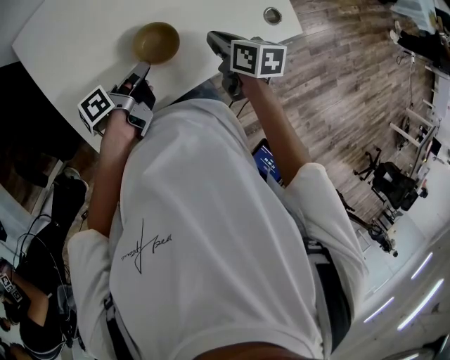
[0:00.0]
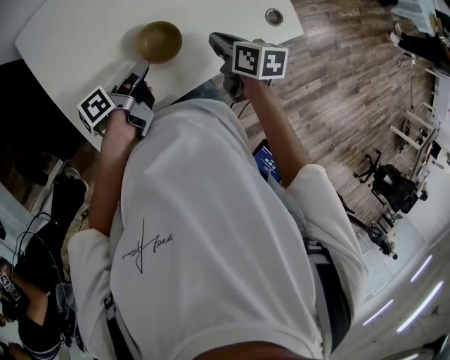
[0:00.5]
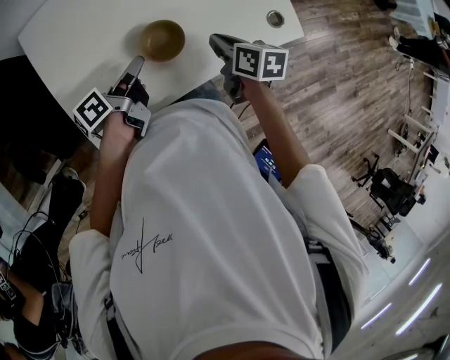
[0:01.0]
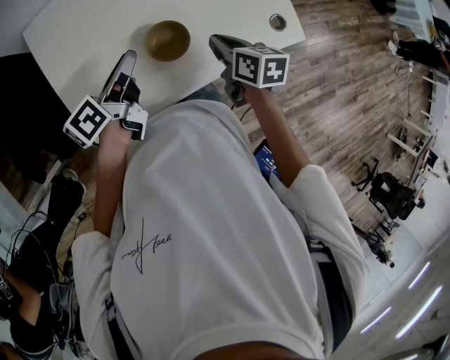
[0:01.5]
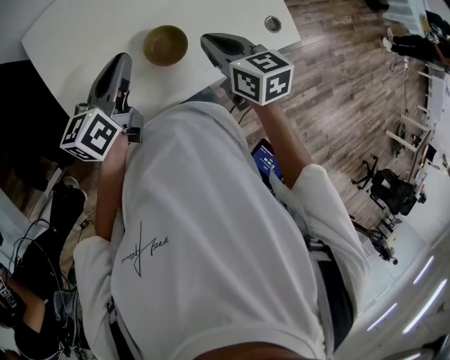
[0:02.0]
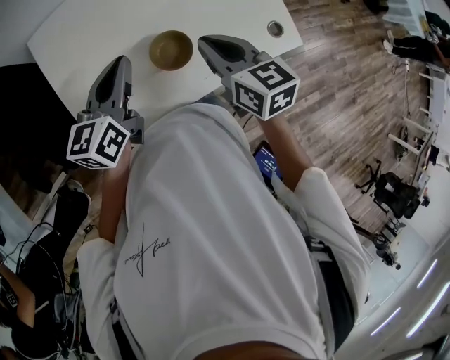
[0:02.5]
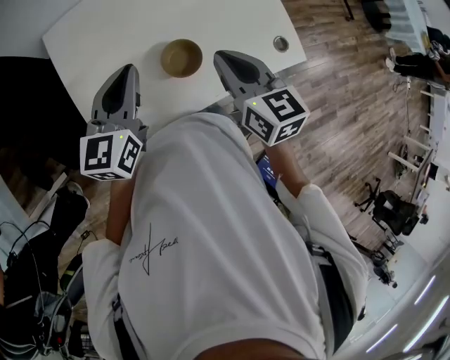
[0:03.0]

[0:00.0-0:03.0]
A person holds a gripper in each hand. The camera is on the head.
0:00.0 to 0:01.5: The left gripper shifts some 10 cm upward, and changes its angle by roughly 30 degrees.
0:01.5 to 0:03.0: Both grippers move upward, approximately 10 cm. The right gripper turns by roughly 30 degrees, while the left gripper rotates around the line of its fingers by some 50 degrees, clockwise from behind, and closes its fingers.

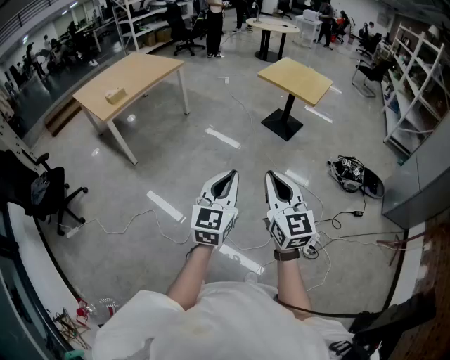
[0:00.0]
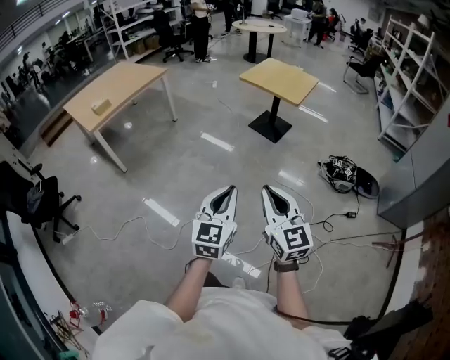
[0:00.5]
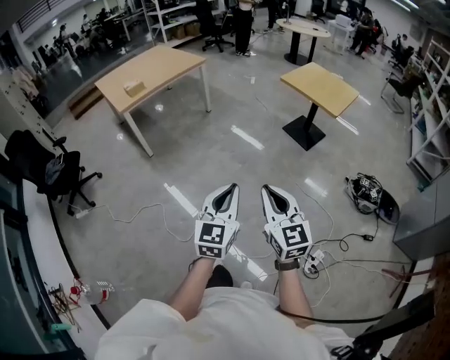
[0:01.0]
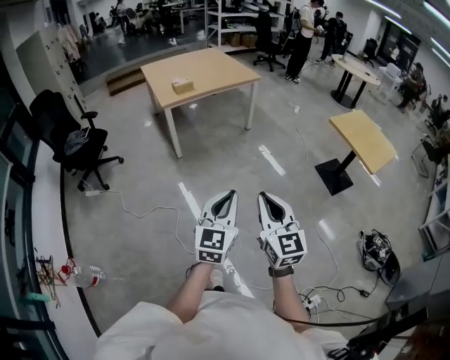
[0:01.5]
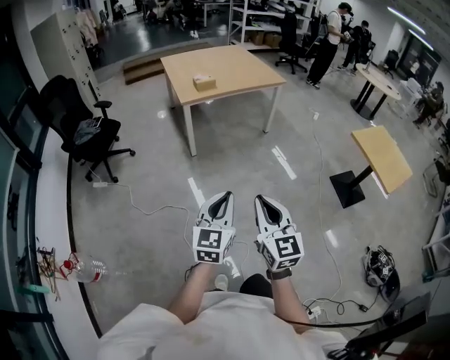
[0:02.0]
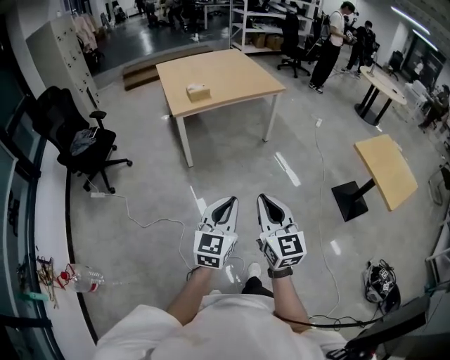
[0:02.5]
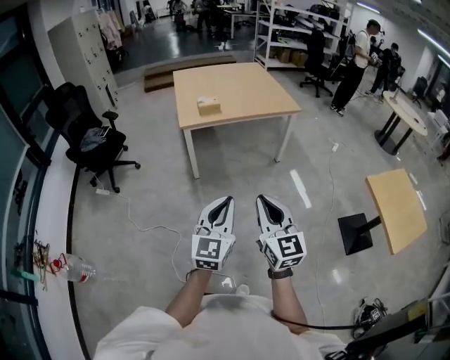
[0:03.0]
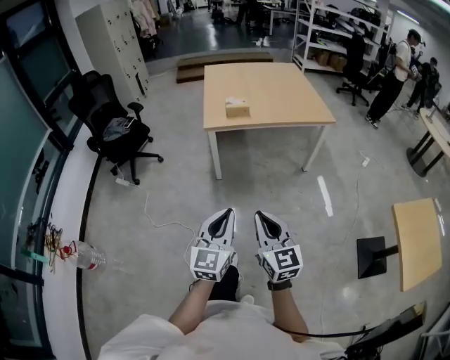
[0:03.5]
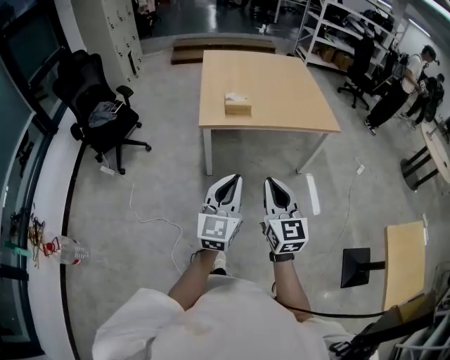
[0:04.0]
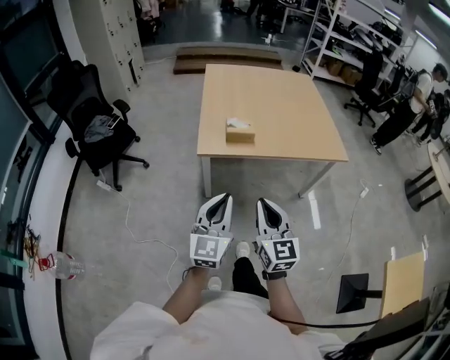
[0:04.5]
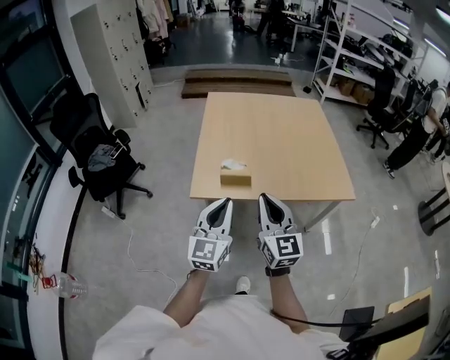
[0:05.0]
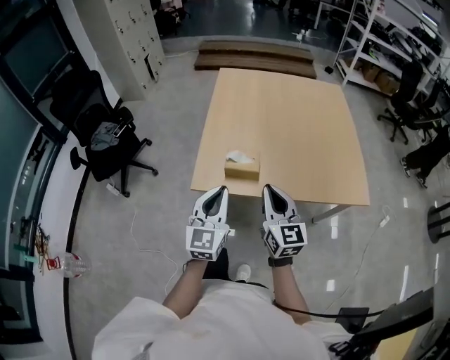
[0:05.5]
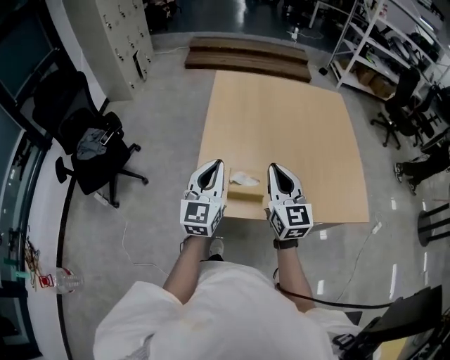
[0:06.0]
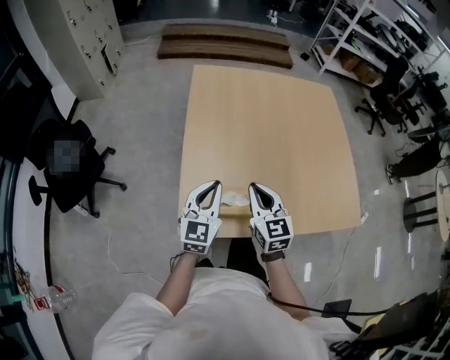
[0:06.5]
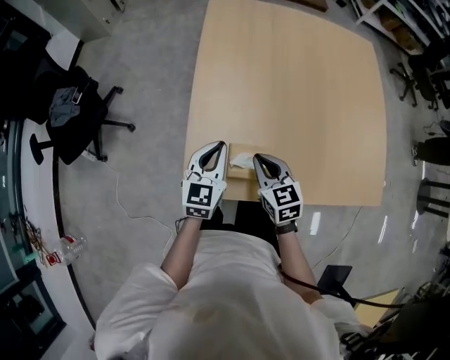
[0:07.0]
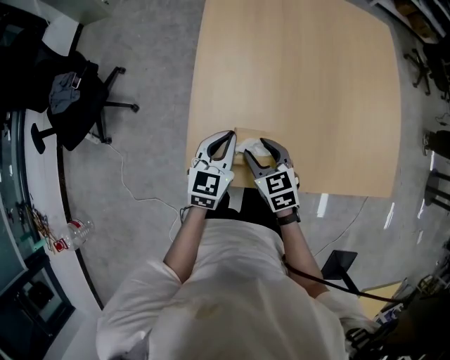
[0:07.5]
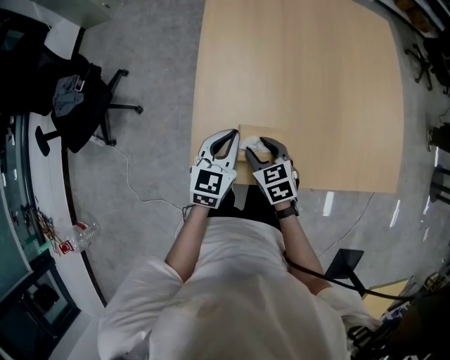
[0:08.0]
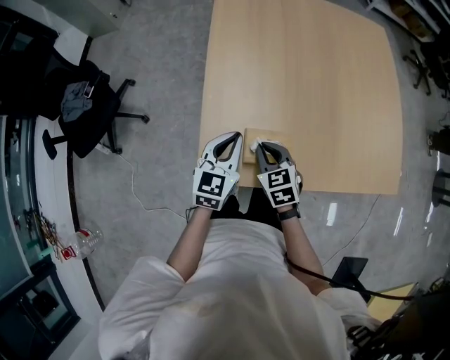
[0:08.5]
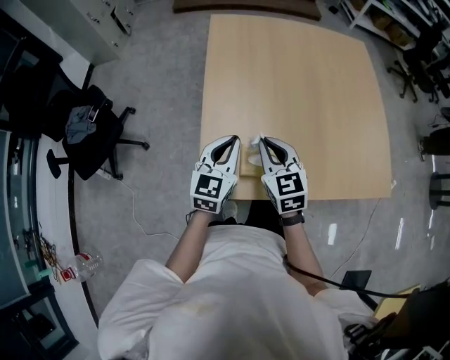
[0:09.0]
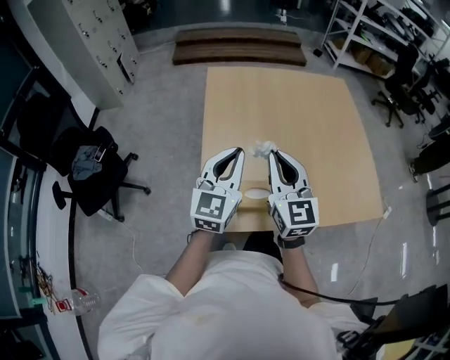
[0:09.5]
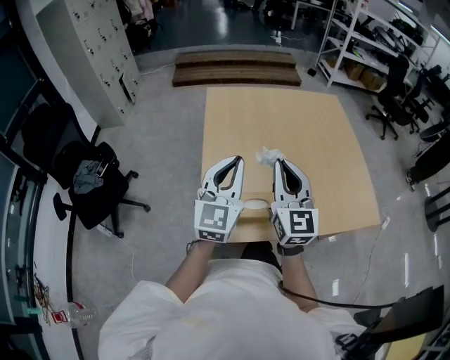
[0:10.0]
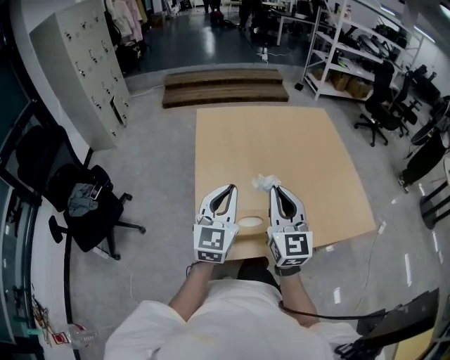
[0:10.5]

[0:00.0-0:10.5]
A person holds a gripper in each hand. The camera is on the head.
0:00.0 to 0:02.0: The left gripper shifts by about 30 cm, and turns by about 40 degrees. The right gripper moves some 30 cm, and changes its angle by about 30 degrees.
0:02.0 to 0:04.0: The pair of grippers is taken forward, some 50 cm.
0:04.0 to 0:06.5: Both grippers are carried forward, about 70 cm.
0:06.5 to 0:08.5: The left gripper heads downward, covering roughly 10 cm; the right gripper moves downward, about 15 cm, changes its angle by about 30 degrees, and opens and closes again.
0:08.5 to 0:10.5: Both grippers travel together upward, some 25 cm. The left gripper changes its angle by roughly 20 degrees, while the right gripper tips its fingers upward by roughly 50 degrees.

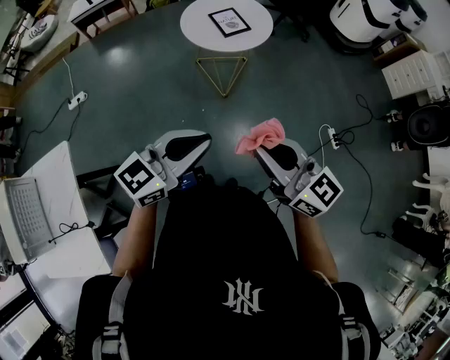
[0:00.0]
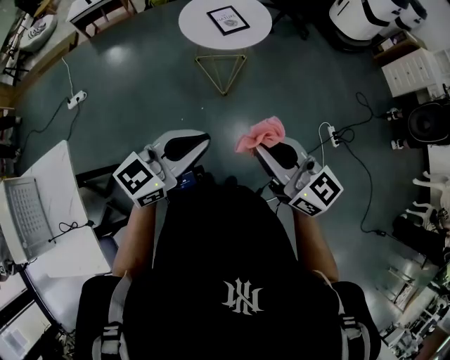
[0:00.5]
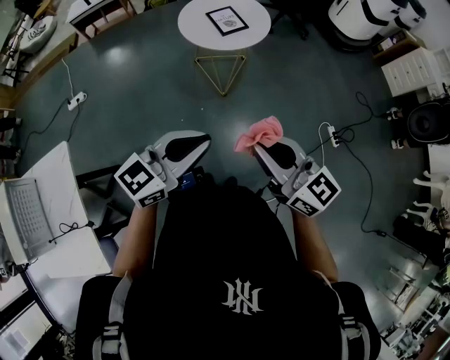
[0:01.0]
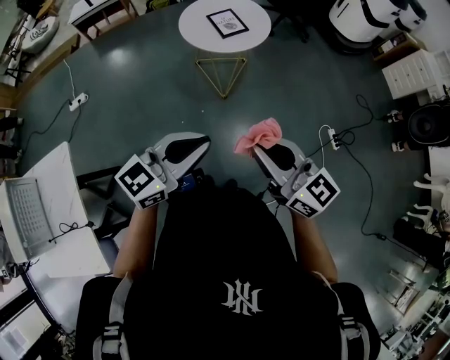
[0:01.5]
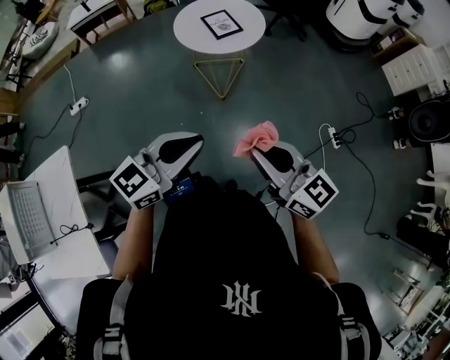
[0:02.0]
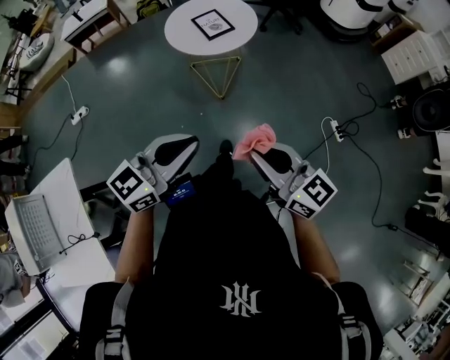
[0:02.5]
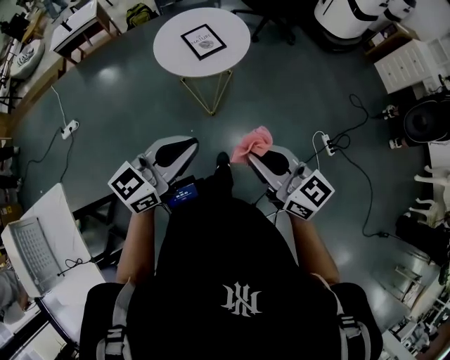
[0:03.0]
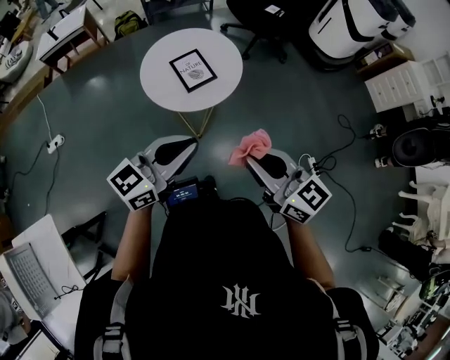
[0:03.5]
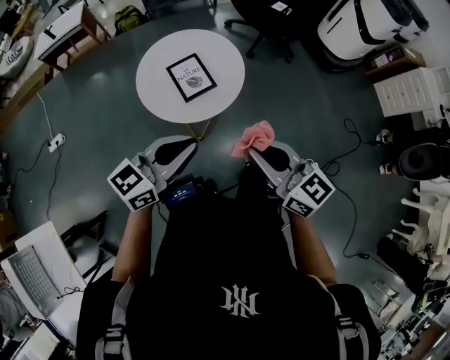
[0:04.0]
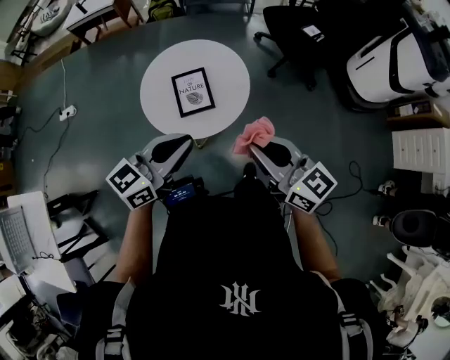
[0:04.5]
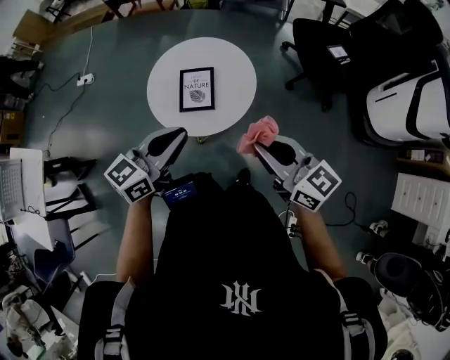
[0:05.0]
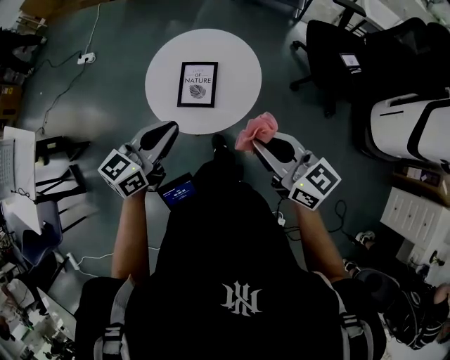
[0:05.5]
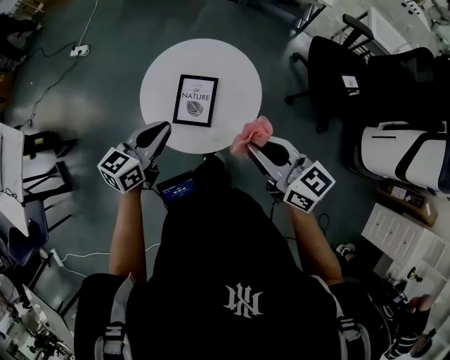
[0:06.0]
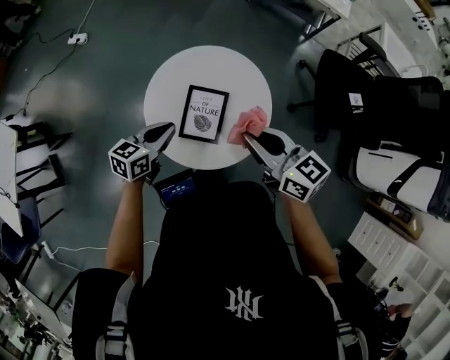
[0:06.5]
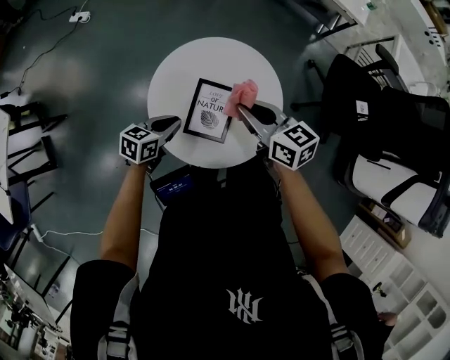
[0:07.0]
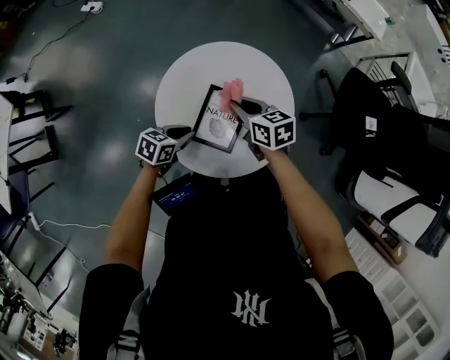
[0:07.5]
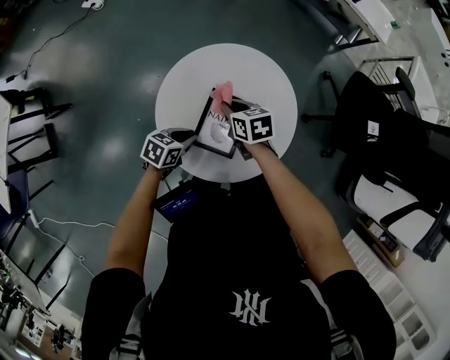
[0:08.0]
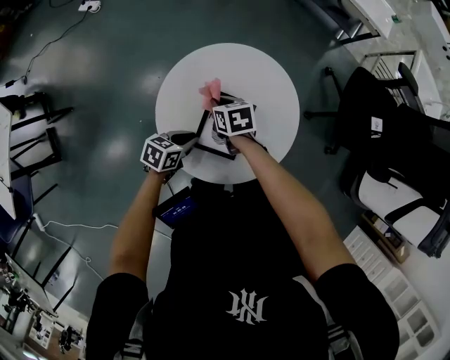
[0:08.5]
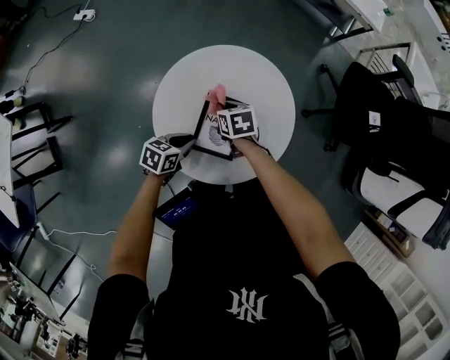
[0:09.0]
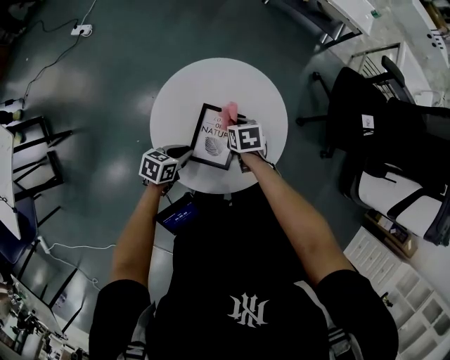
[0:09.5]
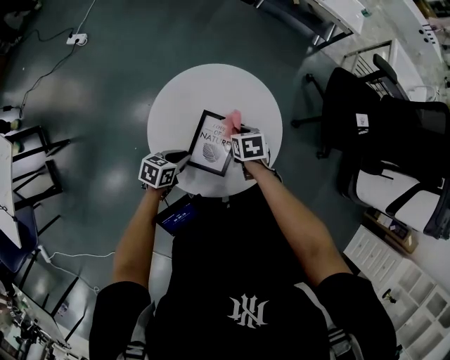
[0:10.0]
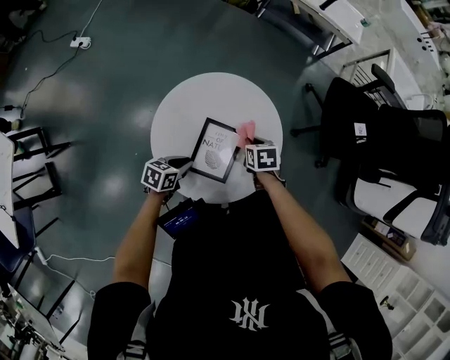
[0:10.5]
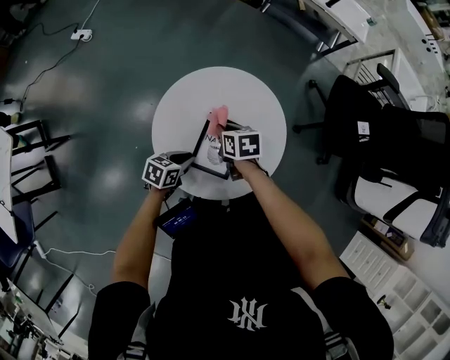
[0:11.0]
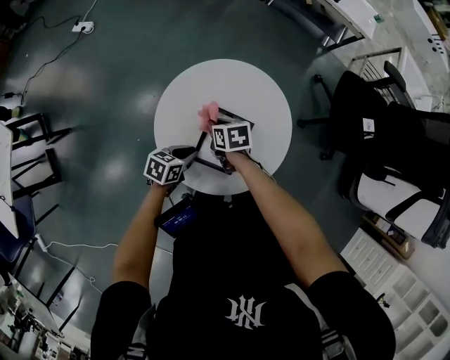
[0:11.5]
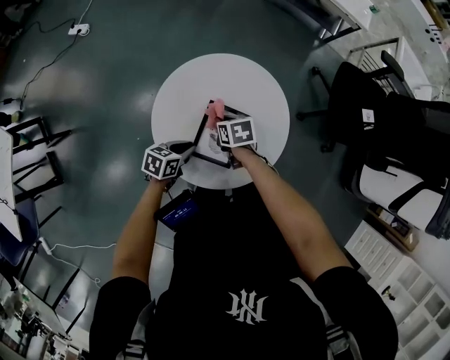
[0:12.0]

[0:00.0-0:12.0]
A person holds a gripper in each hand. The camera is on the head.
0:00.0 to 0:02.0: The grippers make only small movements.
0:02.0 to 0:04.0: Both grippers are carried forward, roughly 40 cm.
0:04.0 to 0:06.0: The left gripper ends up approximately 25 cm from where it was, and swivels about 50 degrees, while the right gripper moves about 35 cm, and rotates about 40 degrees.
0:06.0 to 0:08.0: The right gripper travels downward, forward and to the left by roughly 40 cm, and tilts its fingers roughly 40 degrees downward. Meanwhile the left gripper moves downward, some 25 cm, and rotates about 30 degrees.
0:08.0 to 0:10.0: The right gripper goes some 10 cm to the right, and swivels approximately 20 degrees.
0:10.0 to 0:12.0: The right gripper is displaced to the left by approximately 10 cm.

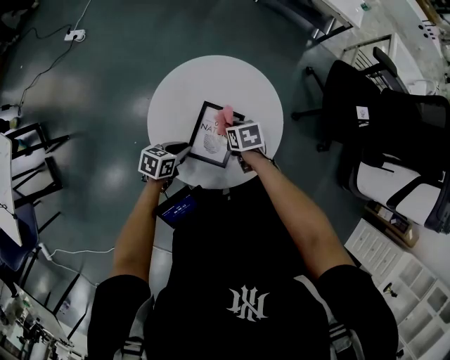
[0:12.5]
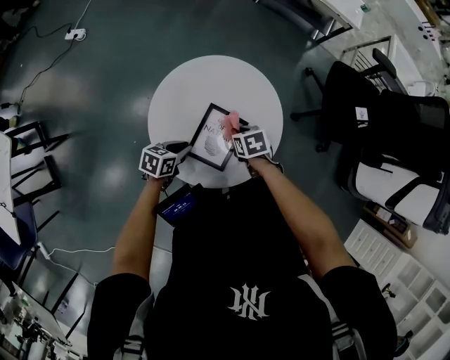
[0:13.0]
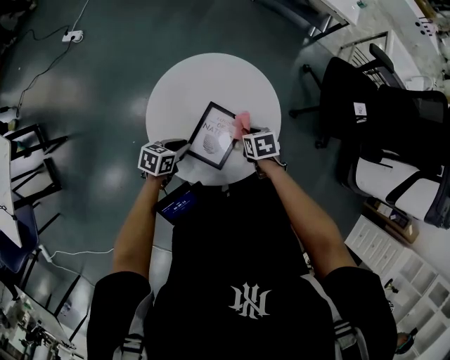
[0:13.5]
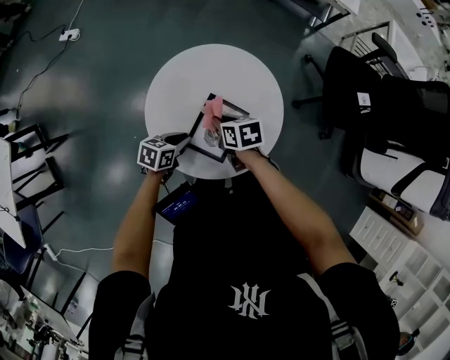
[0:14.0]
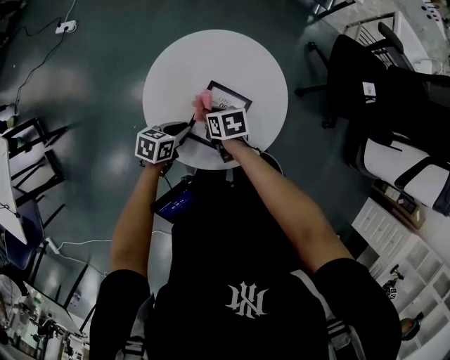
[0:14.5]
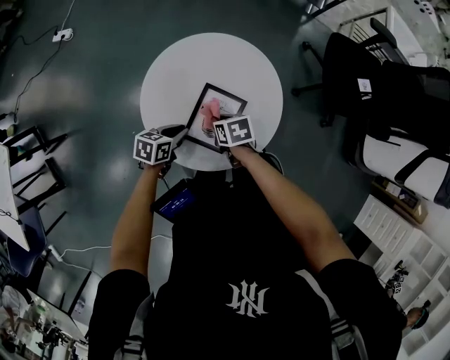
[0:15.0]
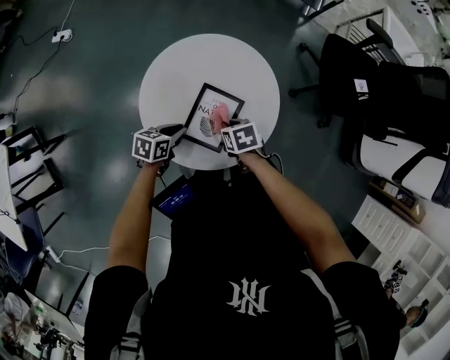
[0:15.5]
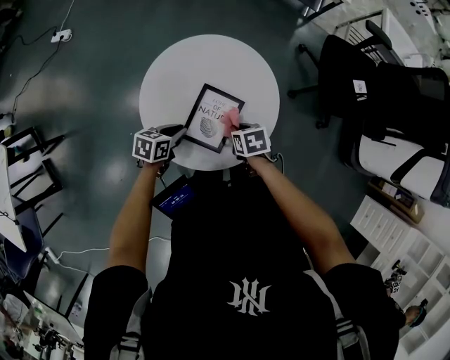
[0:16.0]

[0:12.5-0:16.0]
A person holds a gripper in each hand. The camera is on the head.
0:12.5 to 0:14.5: The right gripper travels to the left by about 5 cm.
0:14.5 to 0:16.0: The right gripper goes roughly 10 cm to the right.
